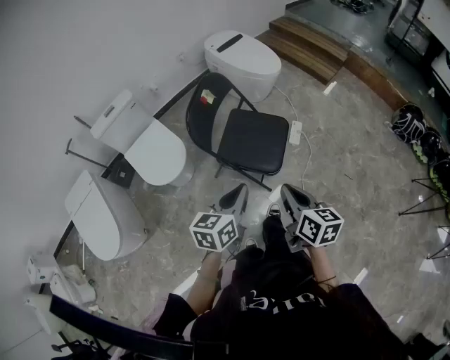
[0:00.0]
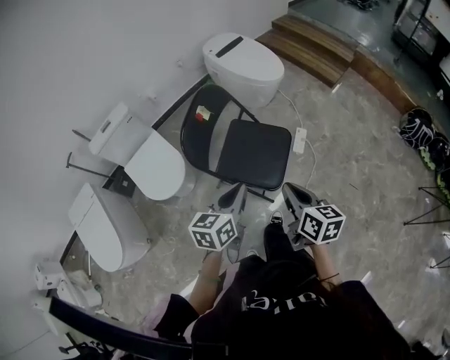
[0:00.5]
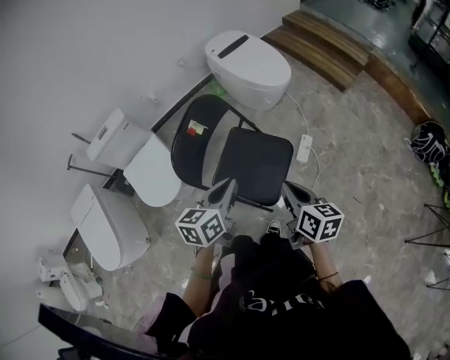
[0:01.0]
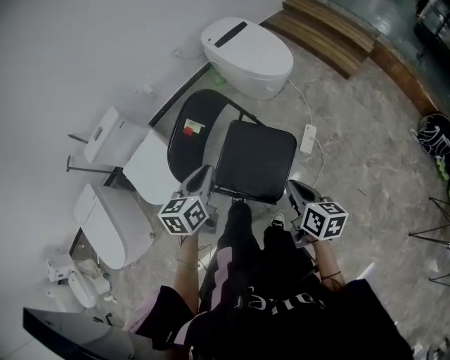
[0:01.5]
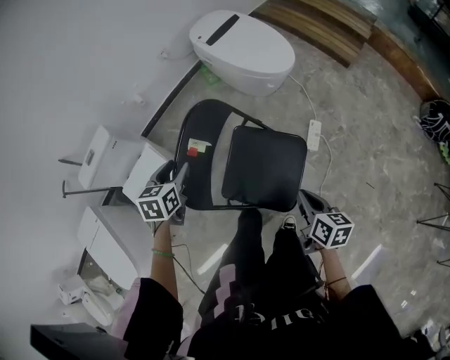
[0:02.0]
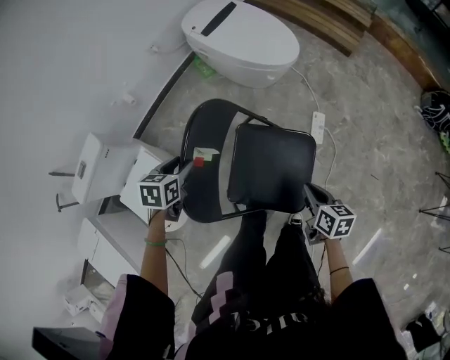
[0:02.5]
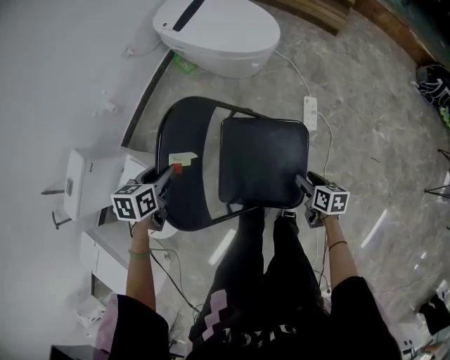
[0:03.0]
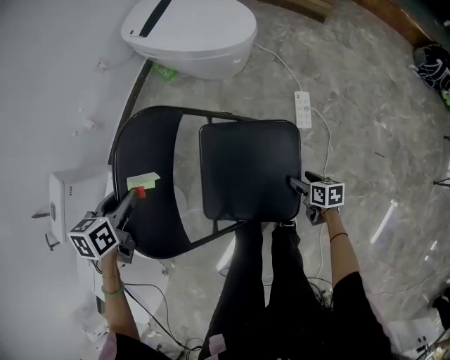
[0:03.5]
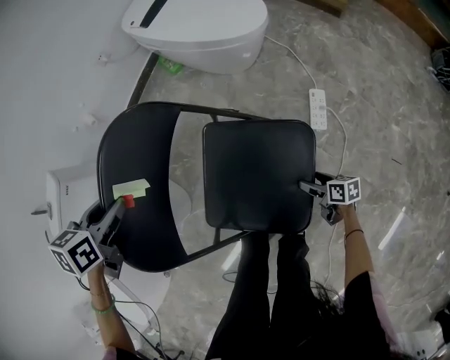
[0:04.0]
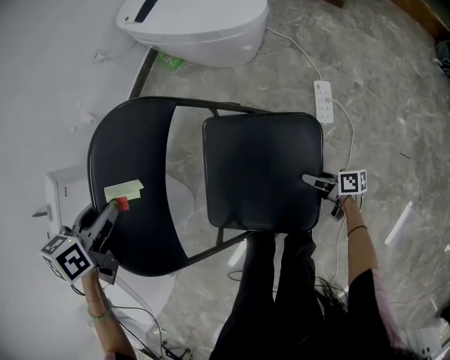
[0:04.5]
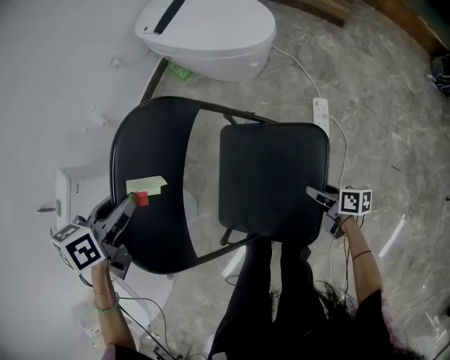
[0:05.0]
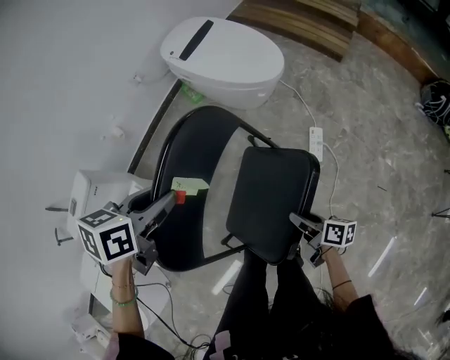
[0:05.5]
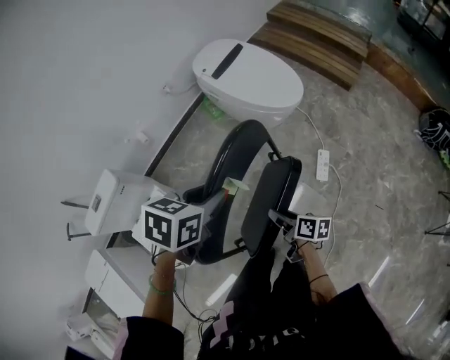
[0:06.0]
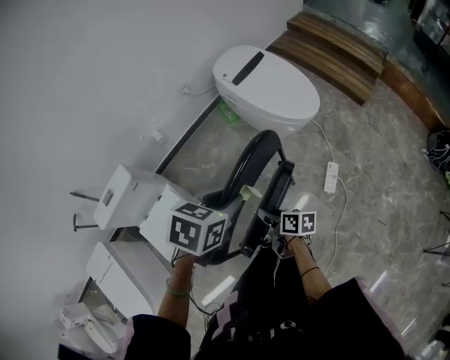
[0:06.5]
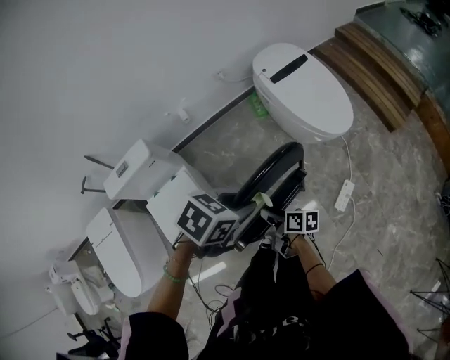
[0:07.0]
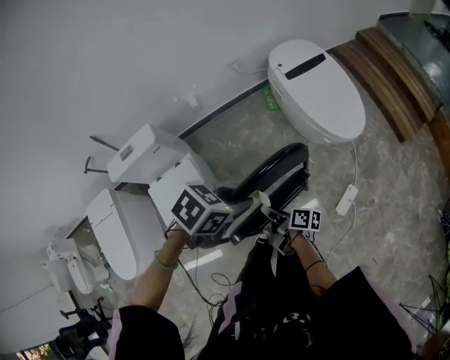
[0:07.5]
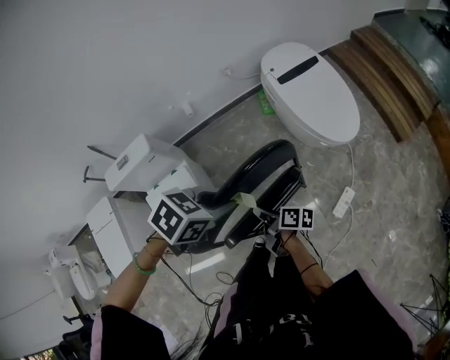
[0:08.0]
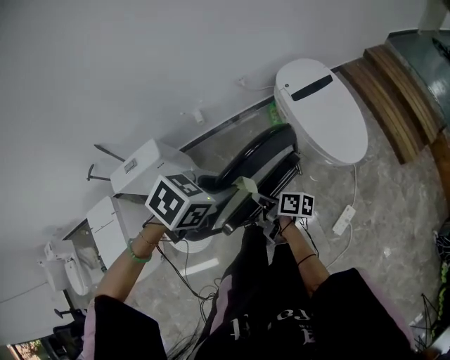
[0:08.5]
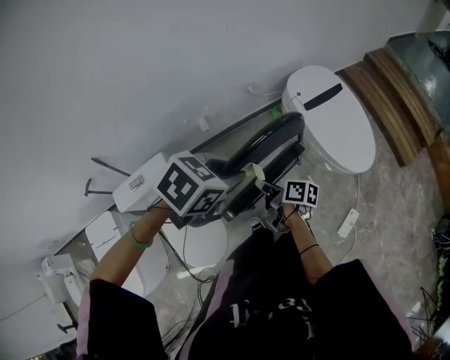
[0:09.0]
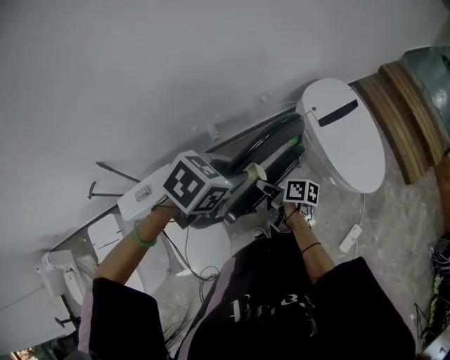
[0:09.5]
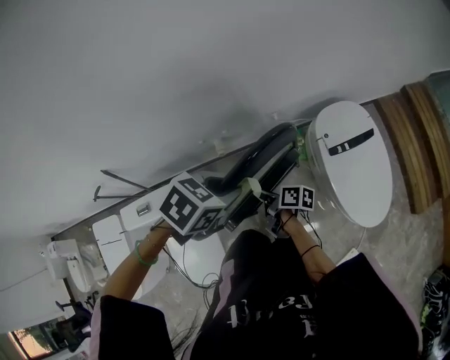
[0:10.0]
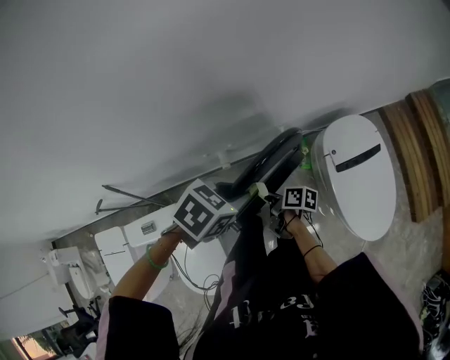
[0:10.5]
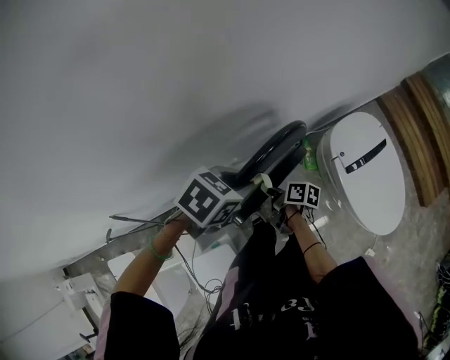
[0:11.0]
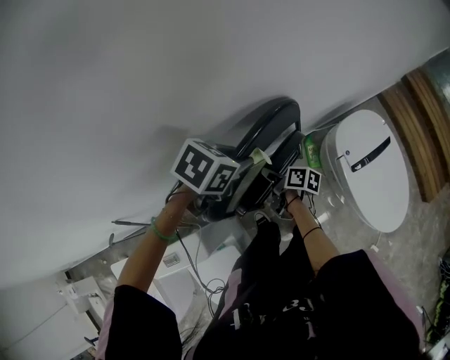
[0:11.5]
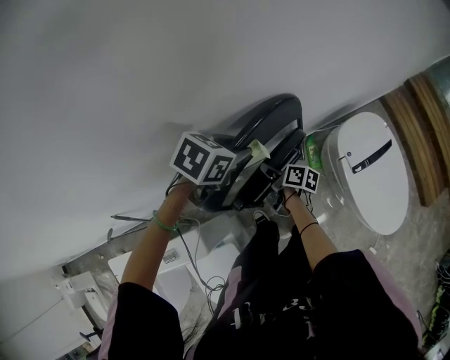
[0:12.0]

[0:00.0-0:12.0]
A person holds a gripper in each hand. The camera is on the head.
0:00.0 to 0:02.0: The left gripper travels forward by about 50 cm, rotates about 30 degrees, and opens. Meanwhile the right gripper is displaced forward and downward by about 35 cm.
0:02.0 to 0:04.0: The right gripper goes some 40 cm downward, changes its angle by approximately 20 degrees, and opens; the left gripper shifts some 15 cm downward and forward.
0:04.0 to 0:06.0: The left gripper shifts roughly 20 cm upward; the right gripper travels upward and to the left by some 40 cm, and closes up.
0:06.0 to 0:08.0: The right gripper shifts by some 15 cm, and turns by about 30 degrees. Meanwhile the left gripper ends up some 5 cm from where it was.
0:08.0 to 0:10.0: The two grippers travel together, roughly 40 cm.
0:10.0 to 0:12.0: The grippers both shift forward and to the left by roughly 25 cm.

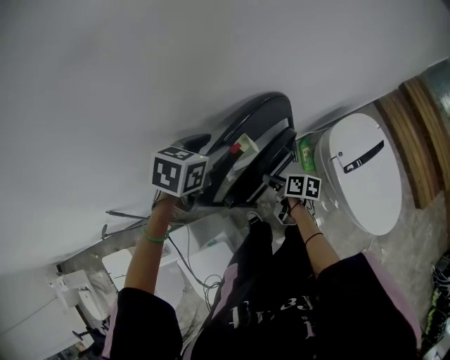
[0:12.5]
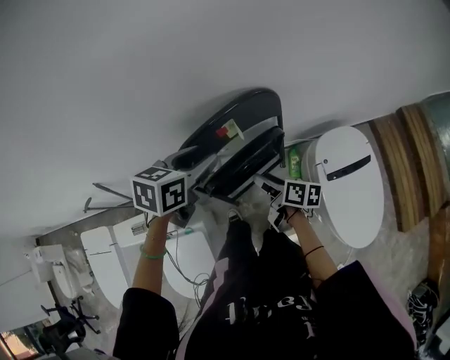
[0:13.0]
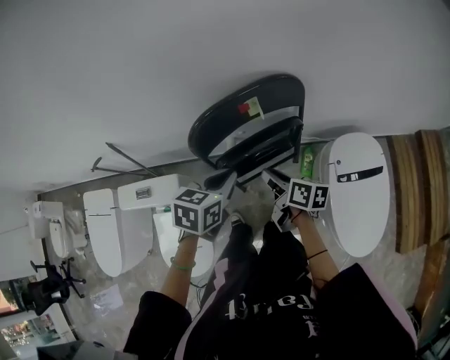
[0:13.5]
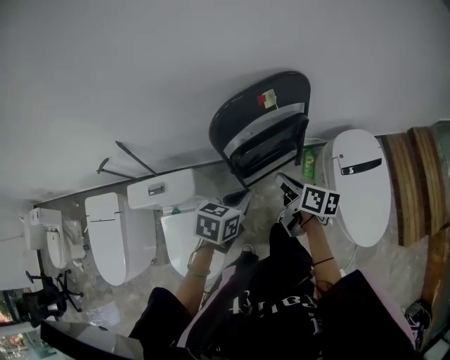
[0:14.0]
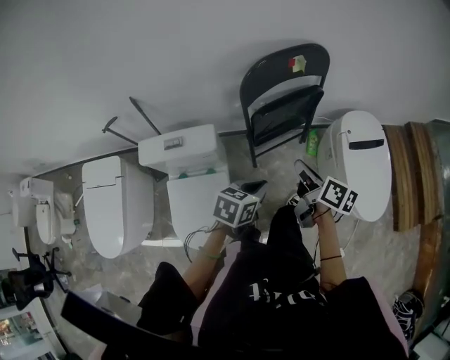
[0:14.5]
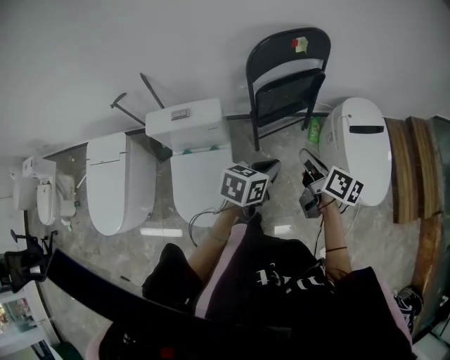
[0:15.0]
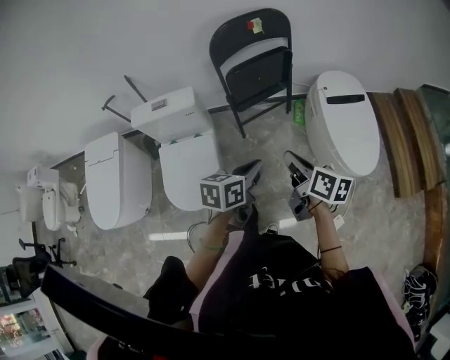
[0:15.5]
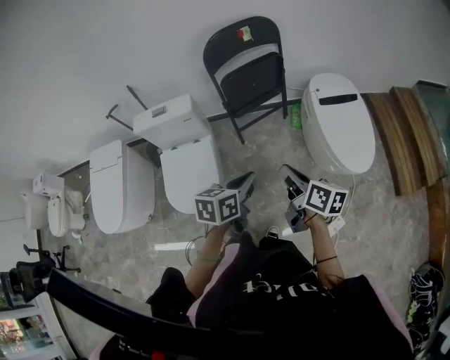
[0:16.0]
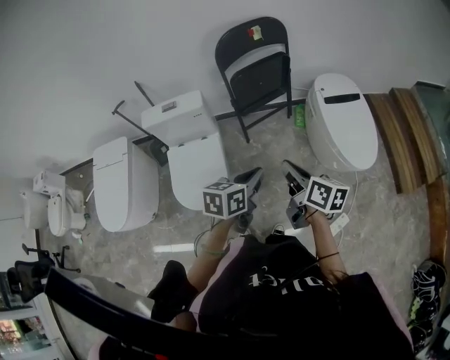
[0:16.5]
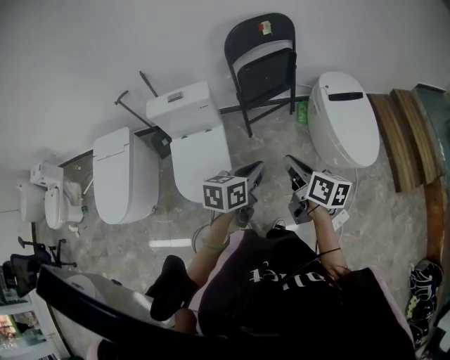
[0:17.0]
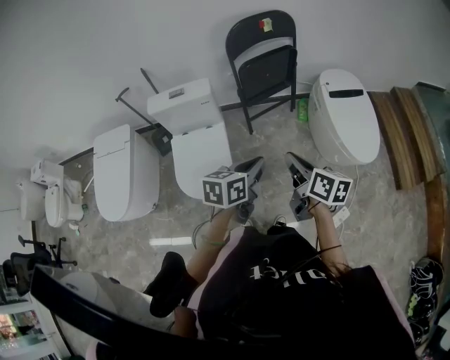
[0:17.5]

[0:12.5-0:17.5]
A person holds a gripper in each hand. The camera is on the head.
0:12.5 to 0:15.0: The pair of grippers is taken backward, some 50 cm. The left gripper turns by roughly 30 degrees, and closes. Meanwhile the right gripper heads upward, covering some 20 cm, swivels roughly 30 degrees, and closes up.
0:15.0 to 0:17.5: The two grippers go some 25 cm backward.

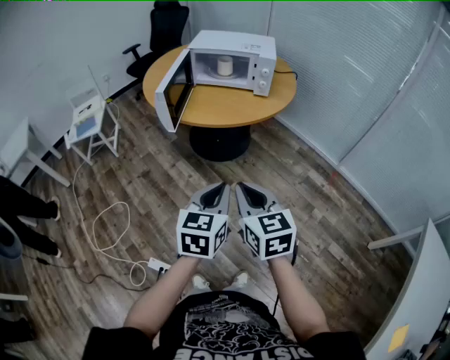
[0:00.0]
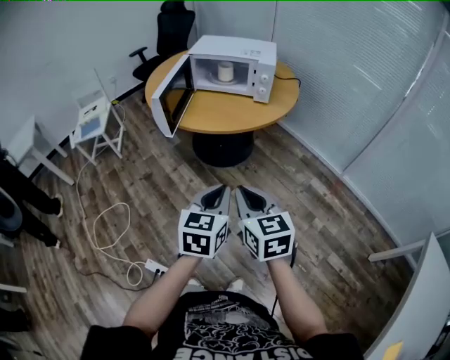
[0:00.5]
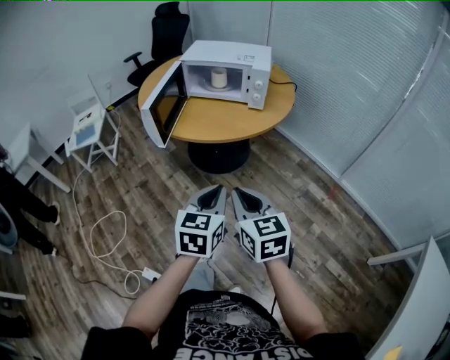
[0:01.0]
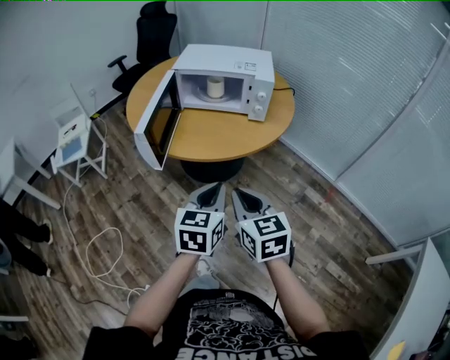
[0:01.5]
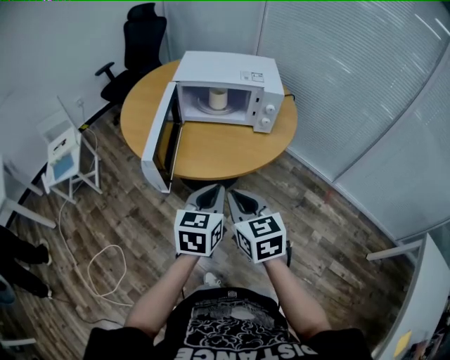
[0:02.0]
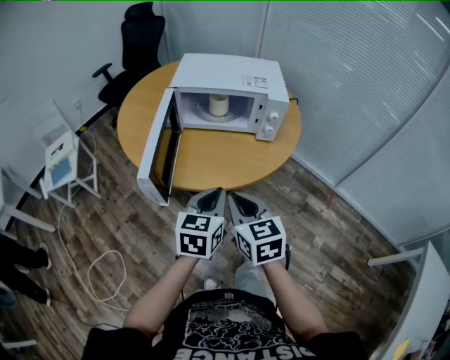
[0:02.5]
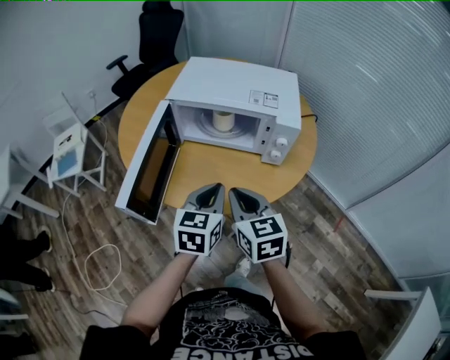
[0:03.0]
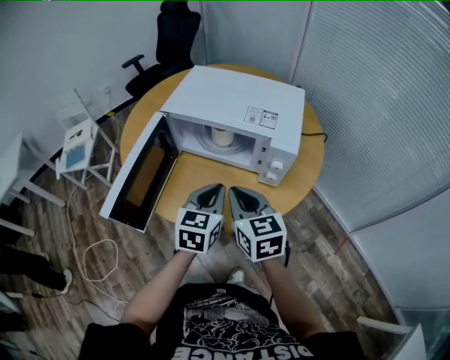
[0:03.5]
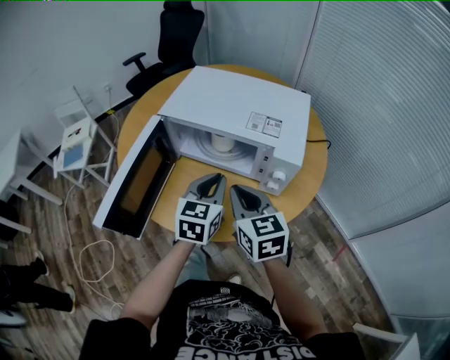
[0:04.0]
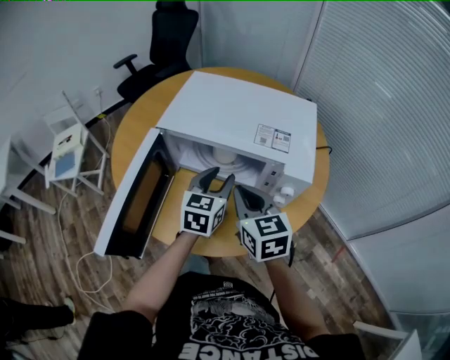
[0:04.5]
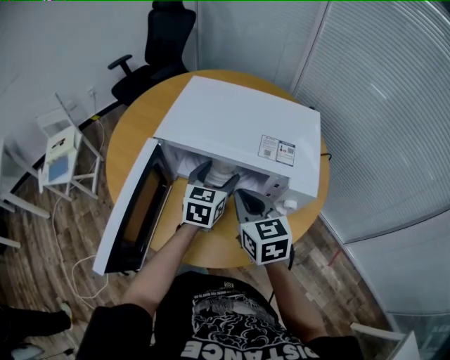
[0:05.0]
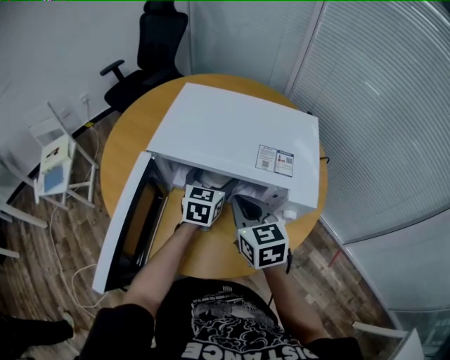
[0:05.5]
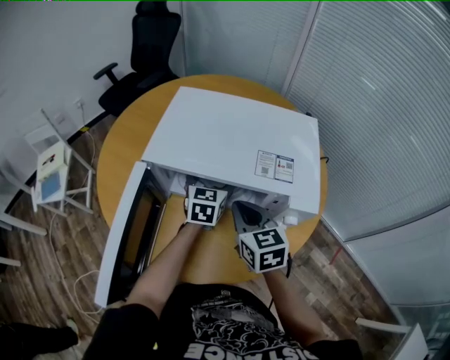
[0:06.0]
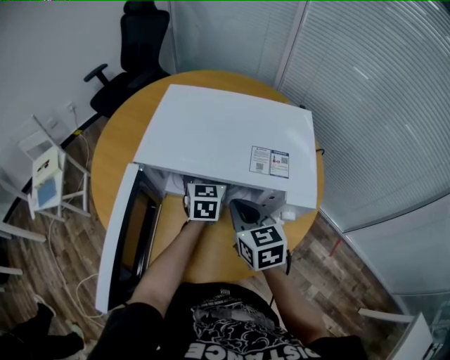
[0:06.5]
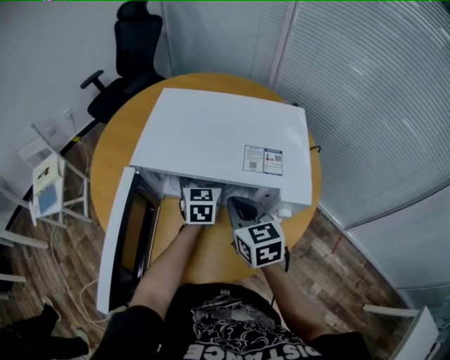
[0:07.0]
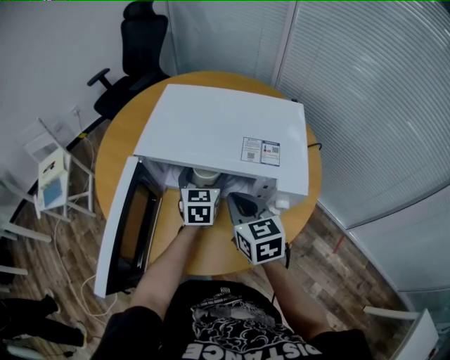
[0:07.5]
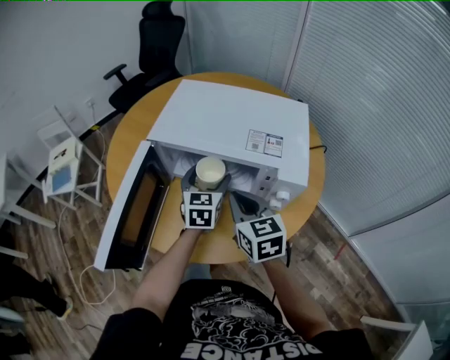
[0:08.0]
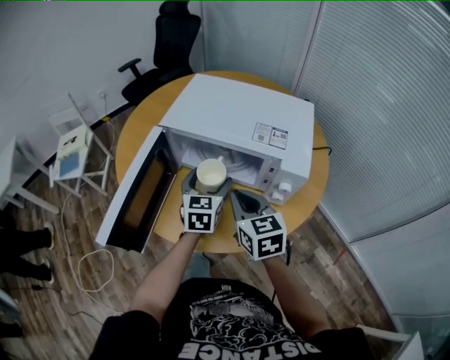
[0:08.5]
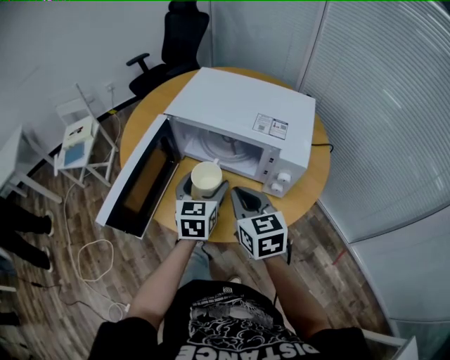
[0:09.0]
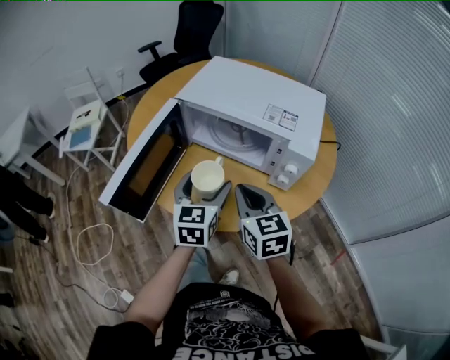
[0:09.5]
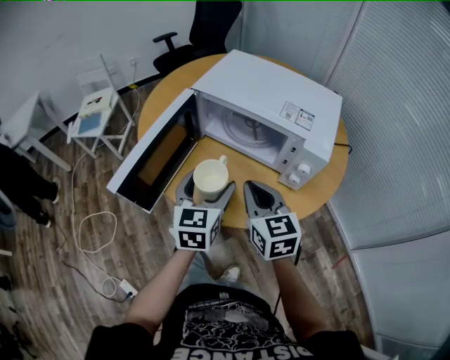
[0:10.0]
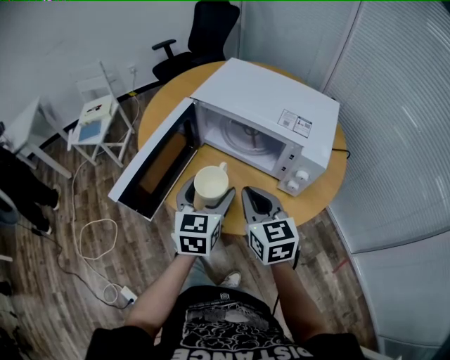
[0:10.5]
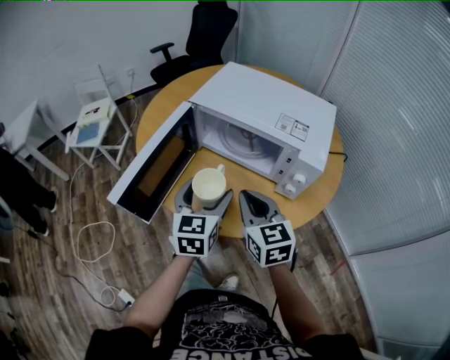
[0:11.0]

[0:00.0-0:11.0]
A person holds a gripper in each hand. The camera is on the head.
0:00.0 to 0:02.0: Both grippers travel together forward, about 25 cm.
0:02.0 to 0:03.5: The left gripper is displaced forward by some 25 cm. Meanwhile the right gripper is displaced forward and to the right by some 25 cm.
0:03.5 to 0:05.5: The right gripper shifts roughly 15 cm forward; the left gripper shifts some 25 cm forward, and opens its fingers.
0:05.5 to 0:07.5: The grippers move only a little.
0:07.5 to 0:09.0: The left gripper heads backward, covering some 15 cm, while the right gripper moves backward, approximately 10 cm.
0:09.0 to 0:11.0: The left gripper heads backward, covering some 5 cm.
